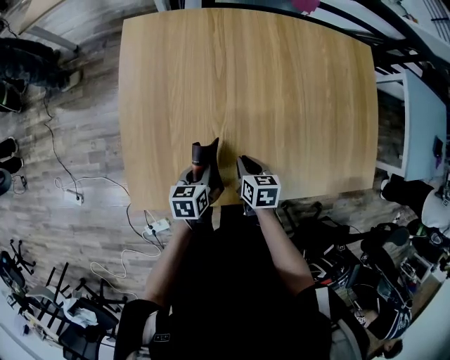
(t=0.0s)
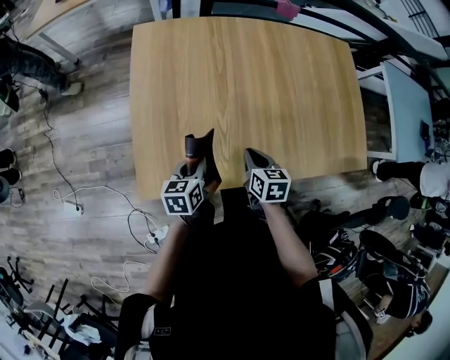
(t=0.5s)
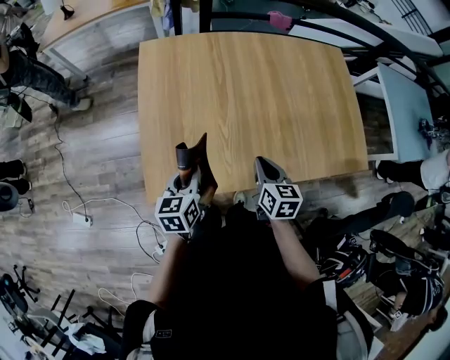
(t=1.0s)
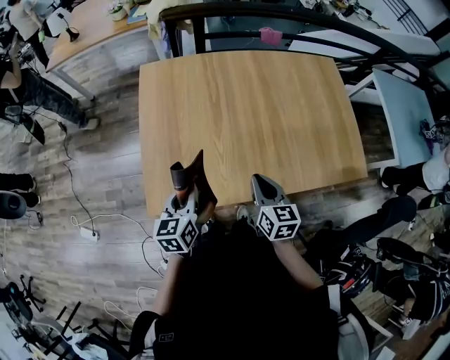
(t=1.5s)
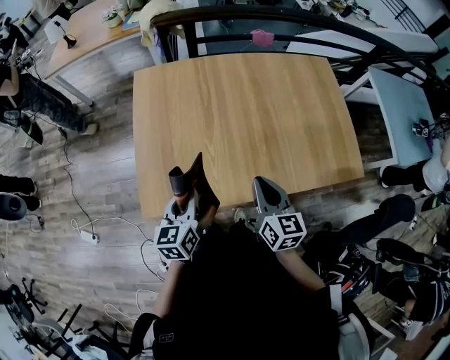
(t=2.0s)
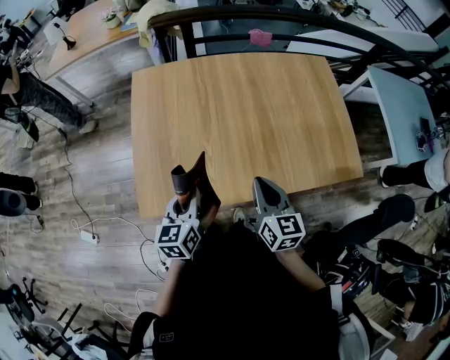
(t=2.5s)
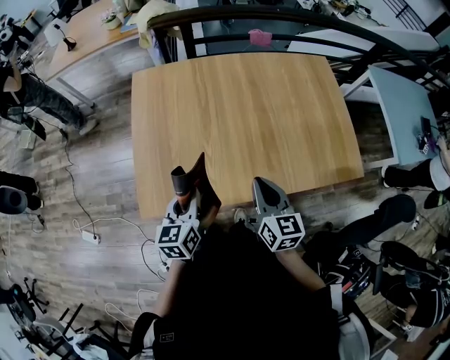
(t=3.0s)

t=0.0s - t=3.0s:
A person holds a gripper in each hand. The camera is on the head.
t=0.0s - t=1.5s: The two grippers go roughly 25 cm upward and backward. The right gripper turns by roughly 30 degrees. The left gripper changes its angle by some 20 degrees.
t=1.5s - t=3.0s: The right gripper goes approximately 5 cm upward and to the right. The left gripper shifts about 5 cm to the right.

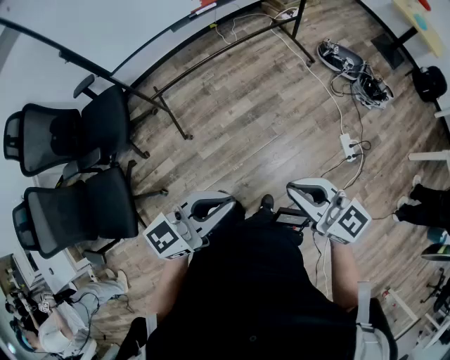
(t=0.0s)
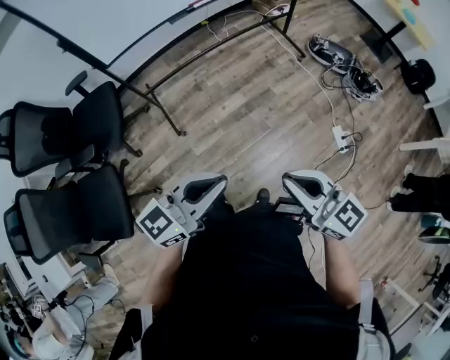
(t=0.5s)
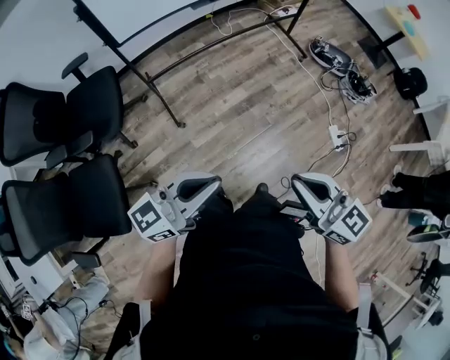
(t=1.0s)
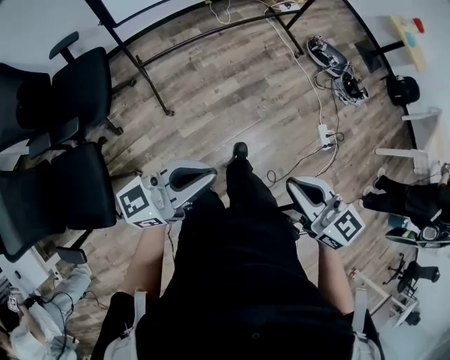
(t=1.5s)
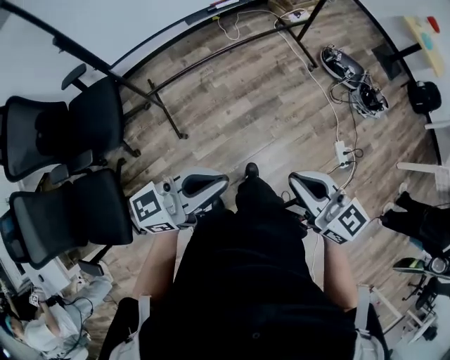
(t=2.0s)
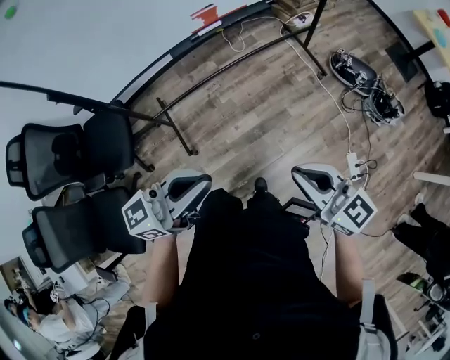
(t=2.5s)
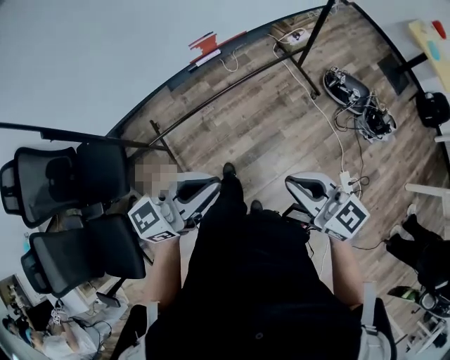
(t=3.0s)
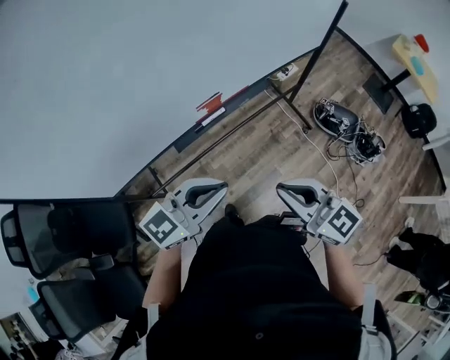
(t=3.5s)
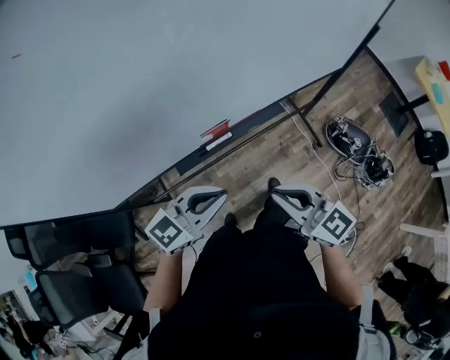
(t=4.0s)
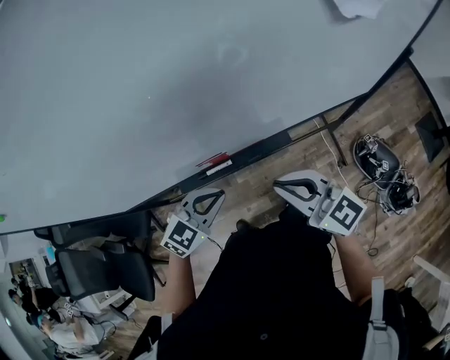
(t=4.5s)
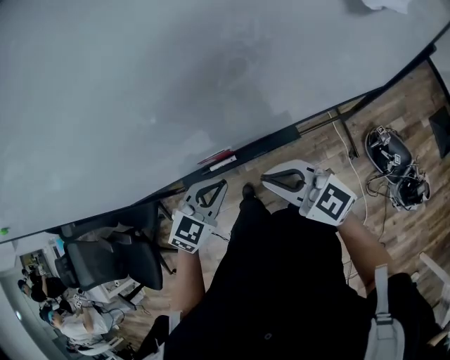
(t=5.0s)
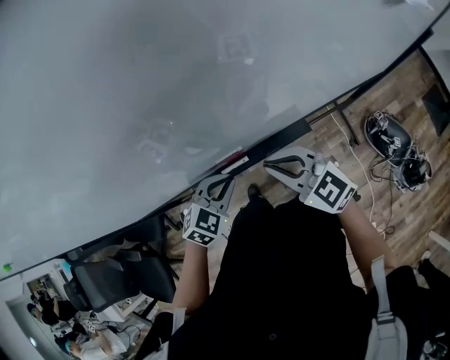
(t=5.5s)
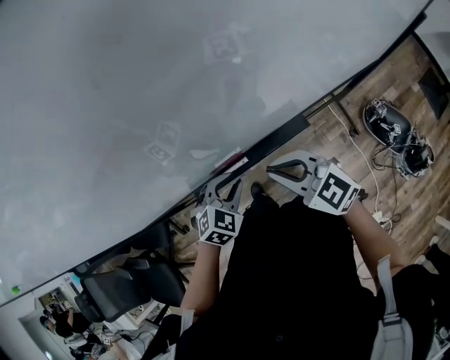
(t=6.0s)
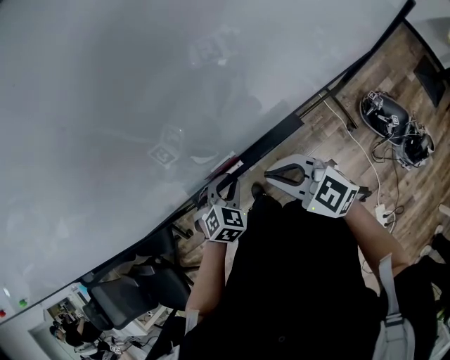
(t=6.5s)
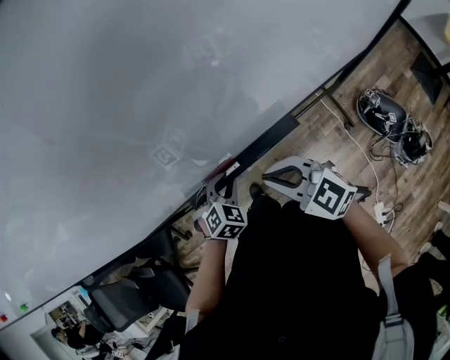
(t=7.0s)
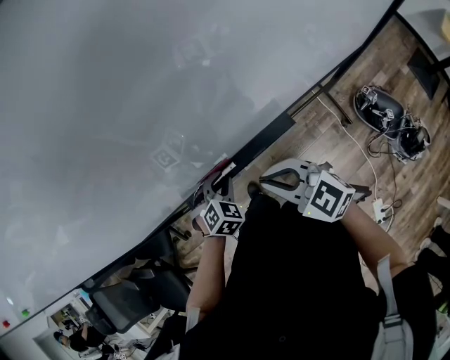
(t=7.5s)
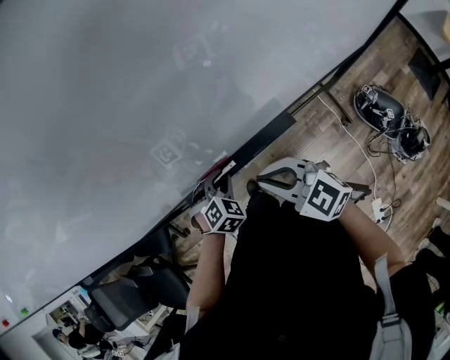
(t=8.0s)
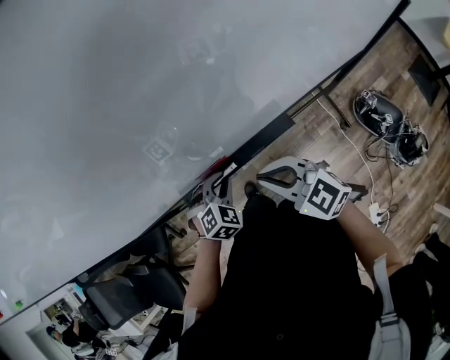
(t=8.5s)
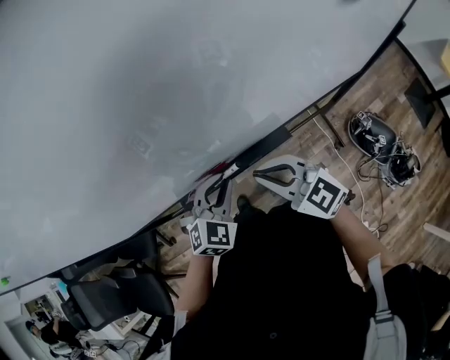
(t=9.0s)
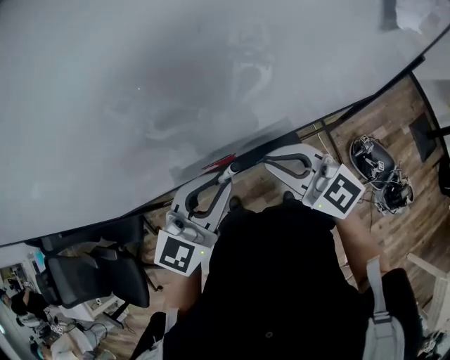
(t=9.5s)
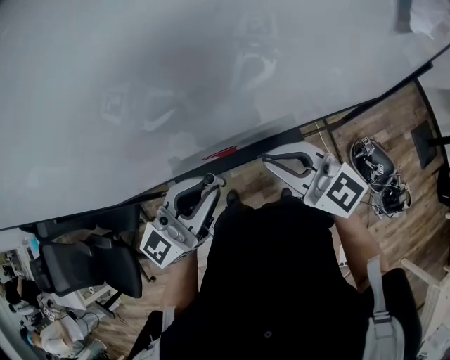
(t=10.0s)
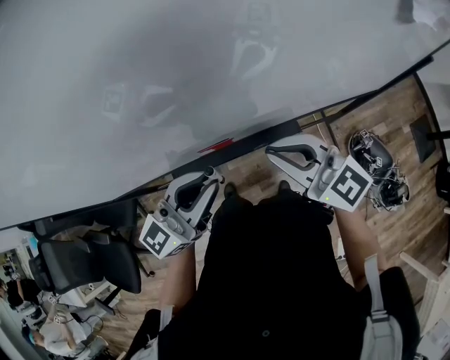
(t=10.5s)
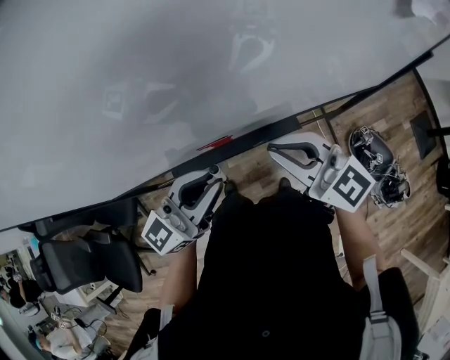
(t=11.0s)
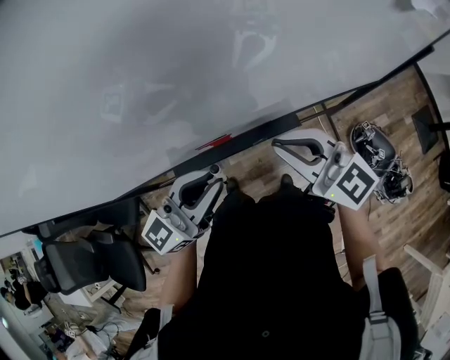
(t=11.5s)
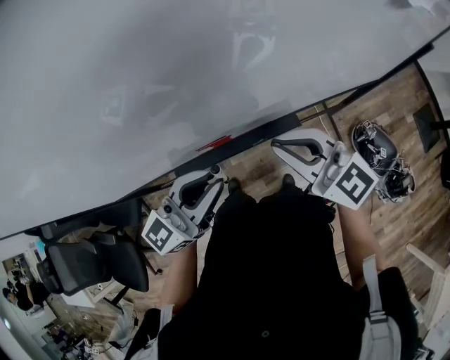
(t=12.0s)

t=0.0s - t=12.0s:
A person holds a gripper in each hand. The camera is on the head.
t=0.0s - t=2.0s: The two grippers go some 15 cm forward and to the left.
t=2.0s - t=4.0s: Both grippers are carried forward, roughly 50 cm. The left gripper swivels roughly 30 degrees.
t=4.0s - t=6.0s: The right gripper changes place by about 20 cm; the left gripper travels downward by approximately 15 cm, and angles its fingers downward, by roughly 40 degrees.
t=6.0s - t=8.0s: The left gripper travels downward by about 5 cm.
t=8.0s - t=10.0s: The right gripper shifts roughly 15 cm upward, while the left gripper heads upward, covering about 30 cm, and tilts its fingers about 70 degrees upward.
t=10.0s - t=12.0s: The left gripper ends up about 5 cm from where it was.

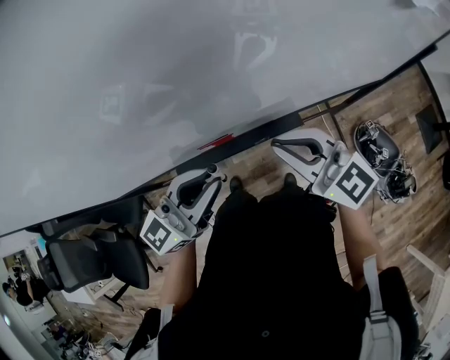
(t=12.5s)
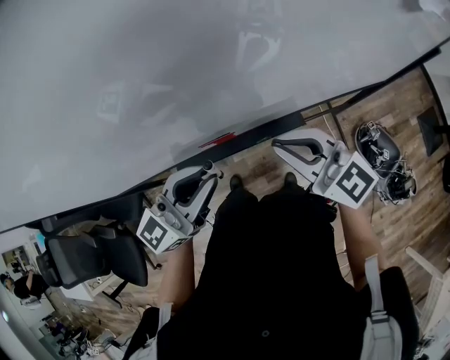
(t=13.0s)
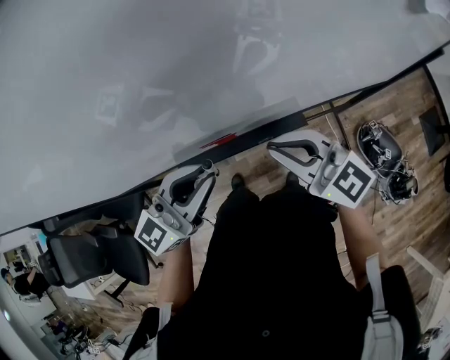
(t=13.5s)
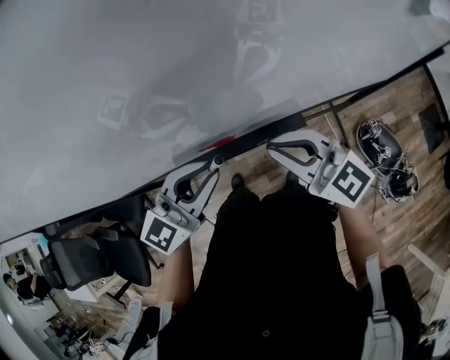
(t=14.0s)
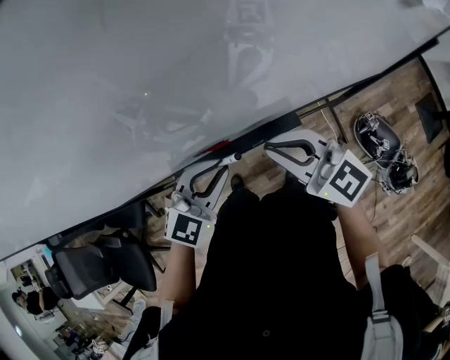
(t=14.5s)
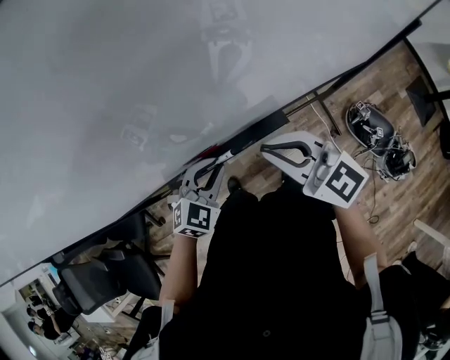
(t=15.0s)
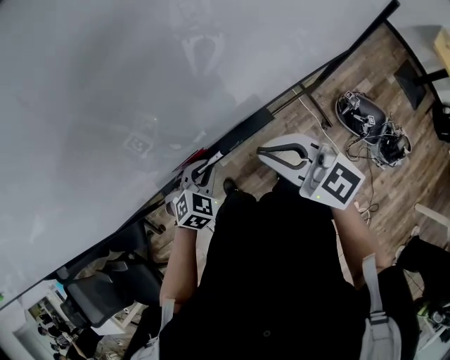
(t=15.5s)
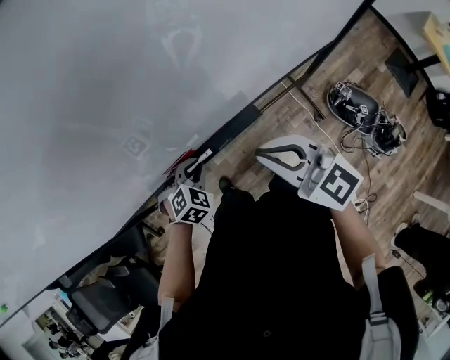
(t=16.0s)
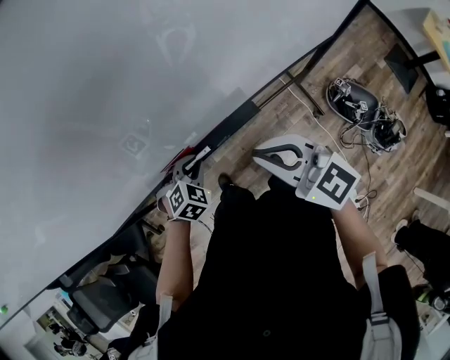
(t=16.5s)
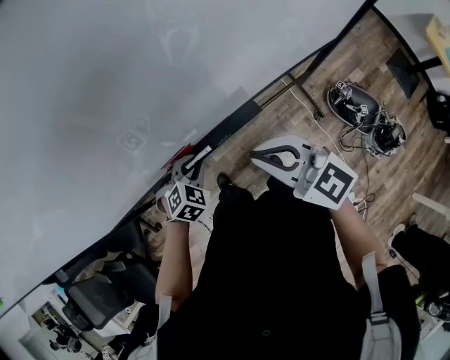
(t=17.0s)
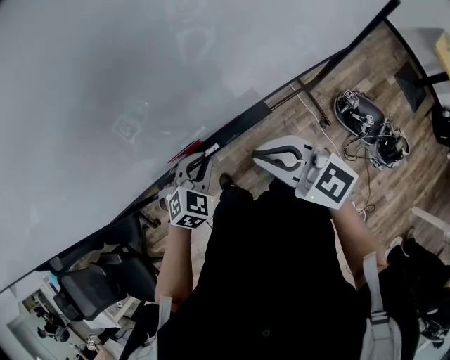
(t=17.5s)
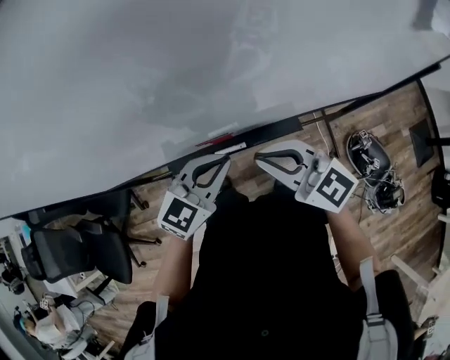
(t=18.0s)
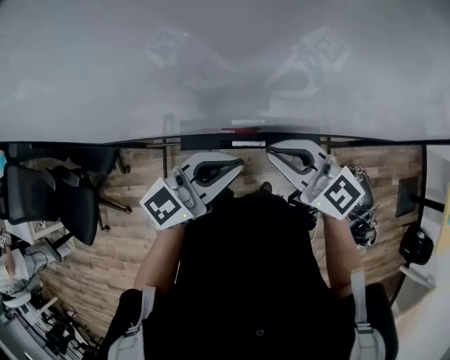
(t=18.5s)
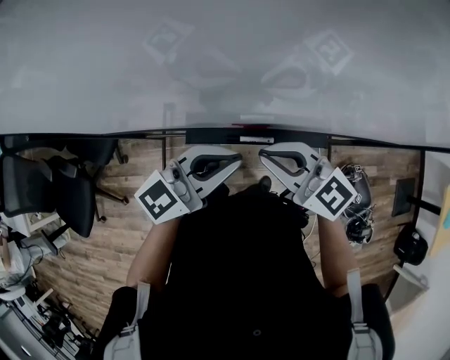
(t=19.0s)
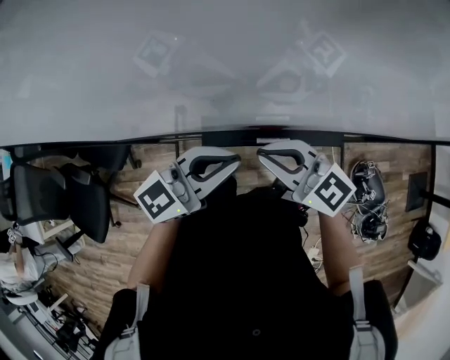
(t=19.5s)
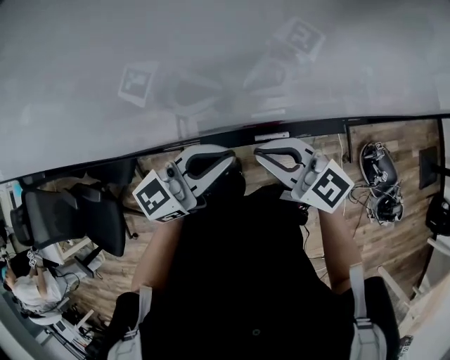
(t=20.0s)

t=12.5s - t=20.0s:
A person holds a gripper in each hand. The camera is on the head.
t=12.5s - t=14.5s: The left gripper travels downward by approximately 10 cm, and points its fingers roughly 30 degrees further downward.
t=14.5s - t=16.5s: The right gripper heads to the right, covering approximately 5 cm. Meanwhile the left gripper goes some 20 cm downward, and tips its fingers downward by some 30 degrees.
t=16.5s - t=18.0s: The right gripper travels to the left by roughly 10 cm, while the left gripper moves upward, about 20 cm, and tilts its fingers roughly 40 degrees upward.
t=18.0s - t=20.0s: The two grippers go some 10 cm to the left. The left gripper turns by about 30 degrees.

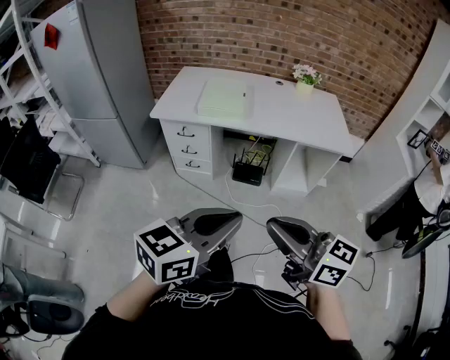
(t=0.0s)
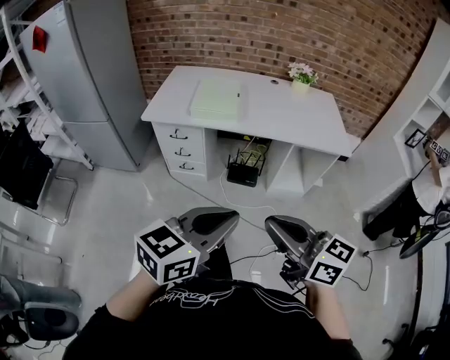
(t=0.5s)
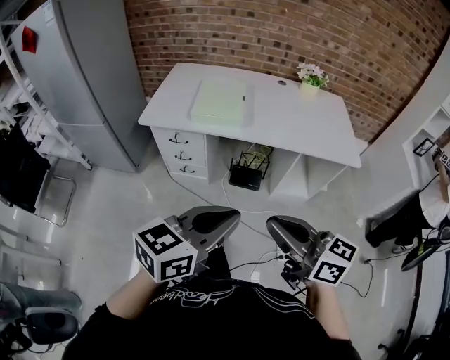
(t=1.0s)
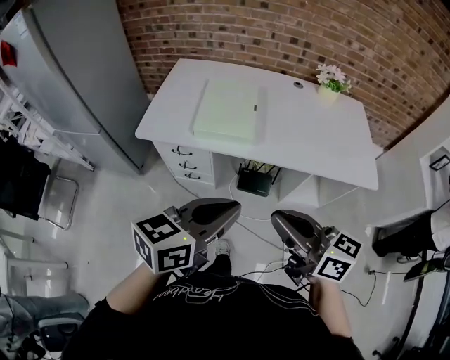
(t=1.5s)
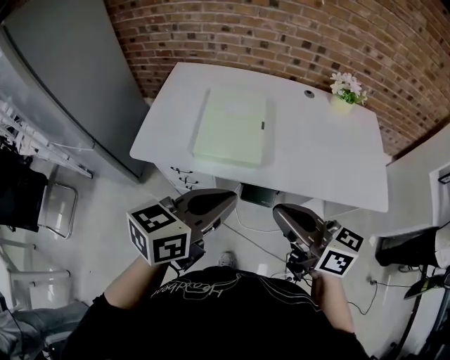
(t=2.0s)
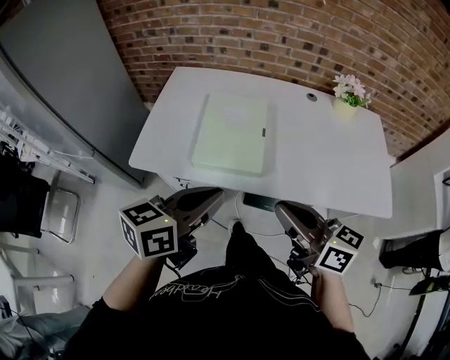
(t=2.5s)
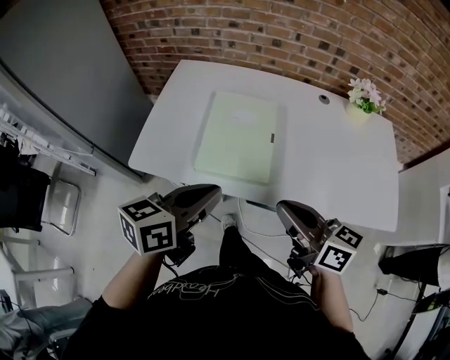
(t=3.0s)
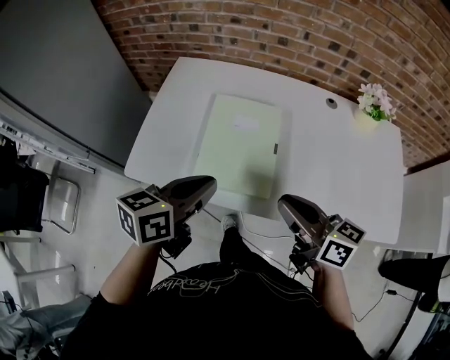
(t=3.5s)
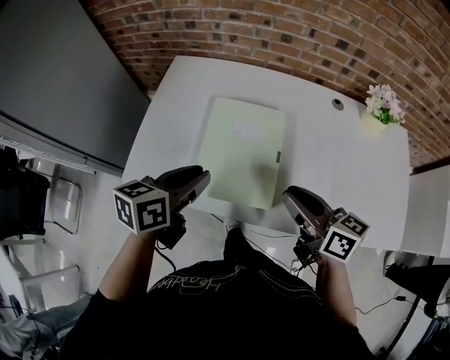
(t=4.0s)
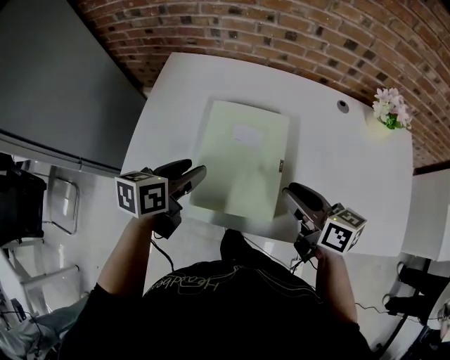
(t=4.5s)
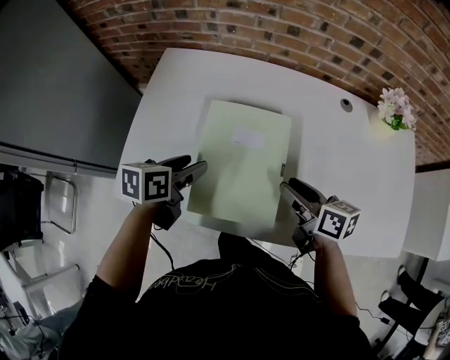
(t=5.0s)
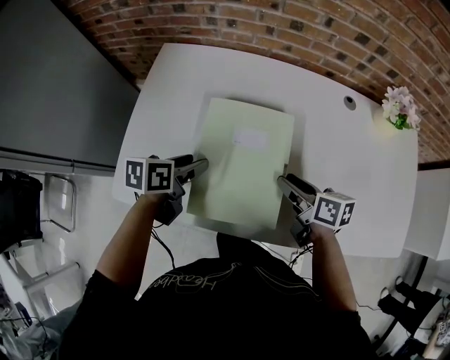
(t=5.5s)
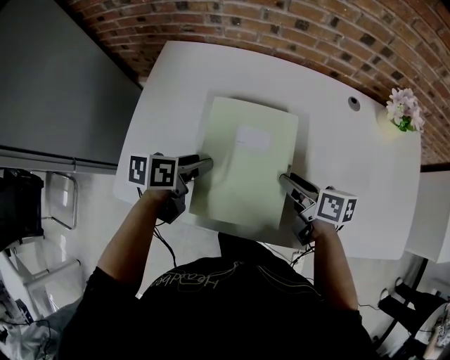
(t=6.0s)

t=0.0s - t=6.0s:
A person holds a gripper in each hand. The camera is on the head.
t=0.0s - t=2.0s: The pair of grippers is taken forward, approximately 40 cm.
t=2.0s - t=4.0s: Both grippers move forward, approximately 25 cm. The left gripper rotates some 20 degrees.
t=4.0s - t=6.0s: The two grippers go roughly 20 cm downward and forward. The right gripper rotates some 30 degrees, and opens its fingers, while the left gripper turns by about 20 degrees, and opens.
